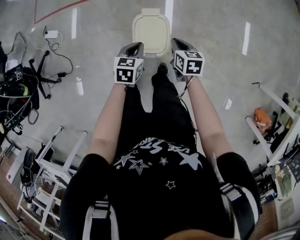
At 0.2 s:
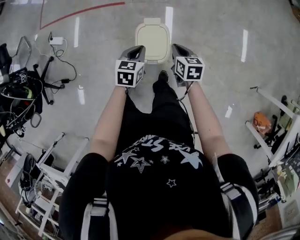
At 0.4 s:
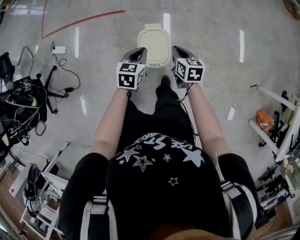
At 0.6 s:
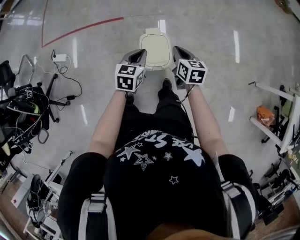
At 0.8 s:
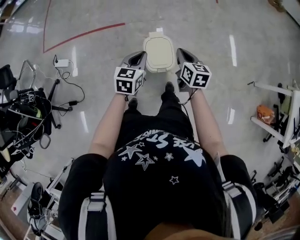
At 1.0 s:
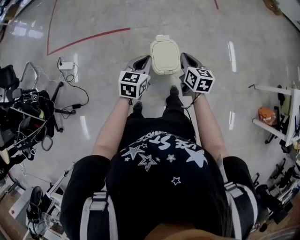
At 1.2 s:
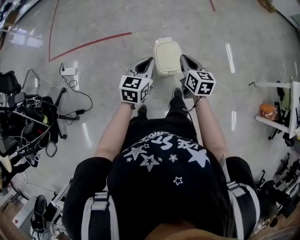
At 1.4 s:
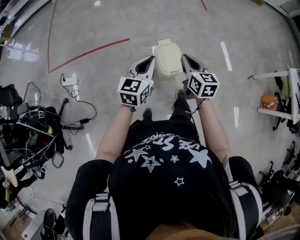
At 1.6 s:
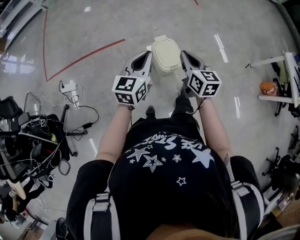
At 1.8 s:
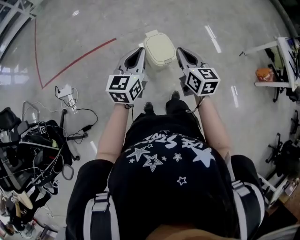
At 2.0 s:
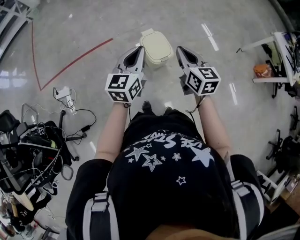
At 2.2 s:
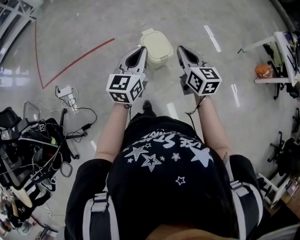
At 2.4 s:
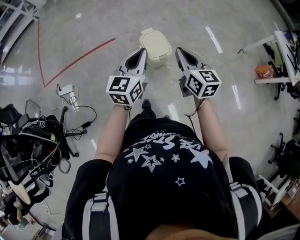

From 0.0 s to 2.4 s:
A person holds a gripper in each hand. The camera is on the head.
From 0.0 s to 1.2 s: The left gripper moves upward and to the left, about 25 cm, and rotates about 30 degrees. Meanwhile the right gripper goes roughly 30 cm upward, to the left and backward, and turns by approximately 30 degrees.
From 1.2 s to 2.4 s: The grippers both shift backward and upward by about 20 cm.

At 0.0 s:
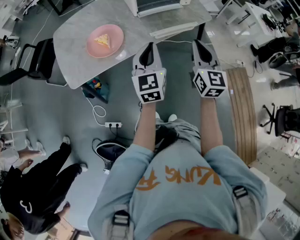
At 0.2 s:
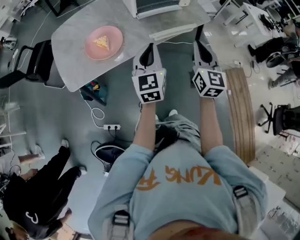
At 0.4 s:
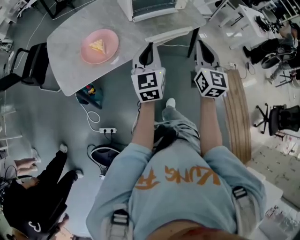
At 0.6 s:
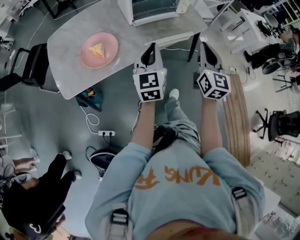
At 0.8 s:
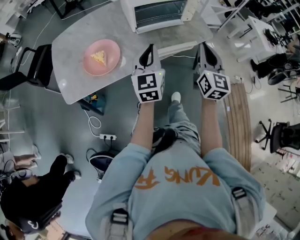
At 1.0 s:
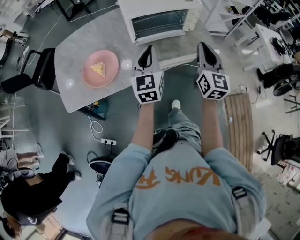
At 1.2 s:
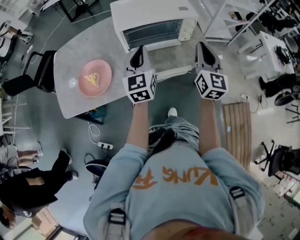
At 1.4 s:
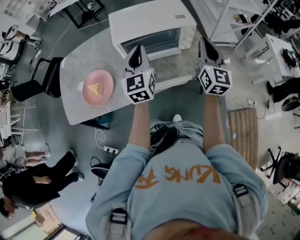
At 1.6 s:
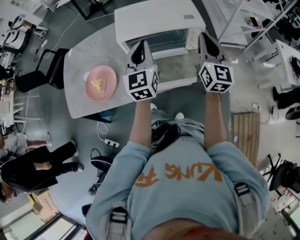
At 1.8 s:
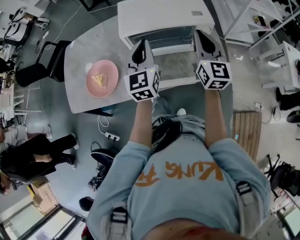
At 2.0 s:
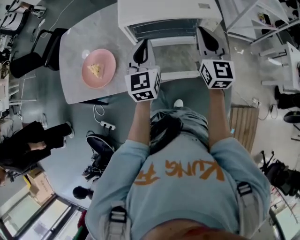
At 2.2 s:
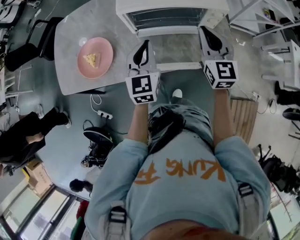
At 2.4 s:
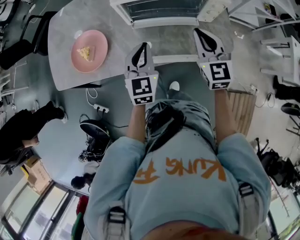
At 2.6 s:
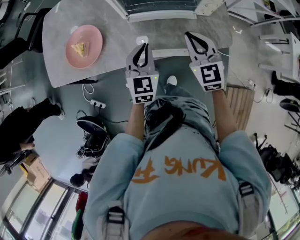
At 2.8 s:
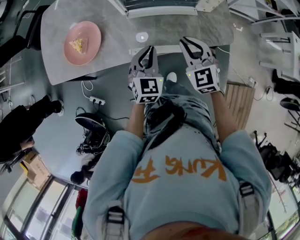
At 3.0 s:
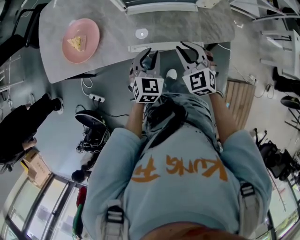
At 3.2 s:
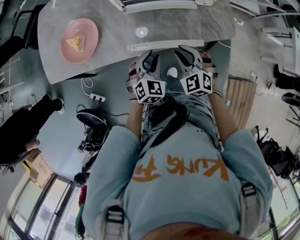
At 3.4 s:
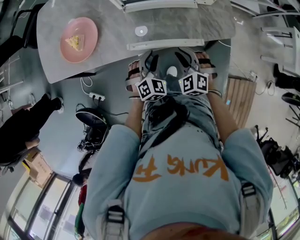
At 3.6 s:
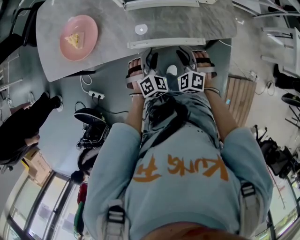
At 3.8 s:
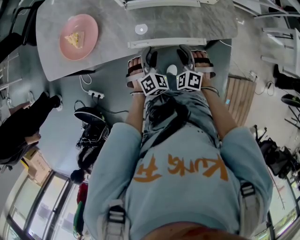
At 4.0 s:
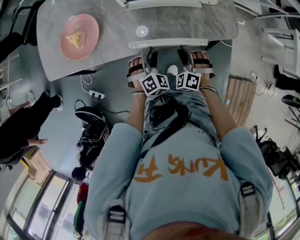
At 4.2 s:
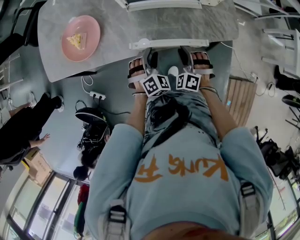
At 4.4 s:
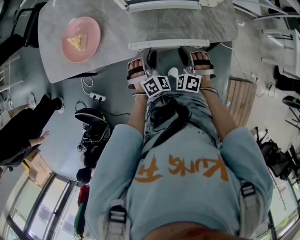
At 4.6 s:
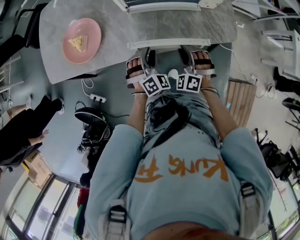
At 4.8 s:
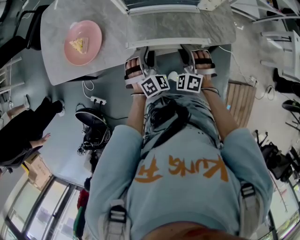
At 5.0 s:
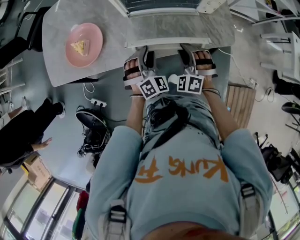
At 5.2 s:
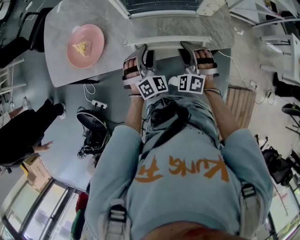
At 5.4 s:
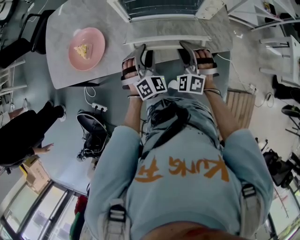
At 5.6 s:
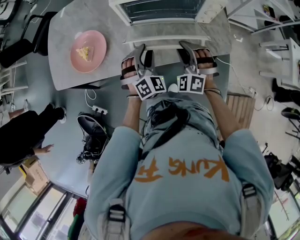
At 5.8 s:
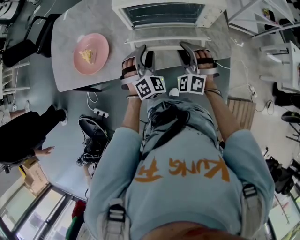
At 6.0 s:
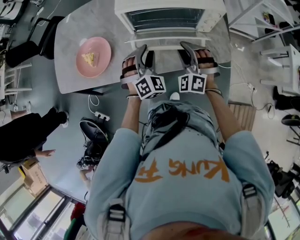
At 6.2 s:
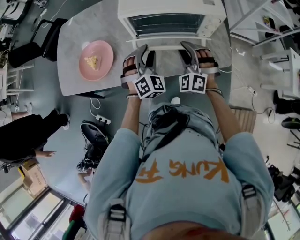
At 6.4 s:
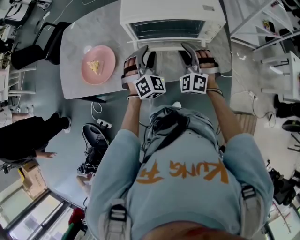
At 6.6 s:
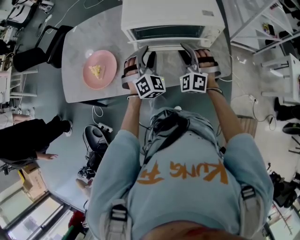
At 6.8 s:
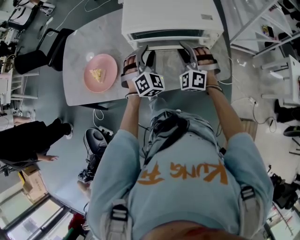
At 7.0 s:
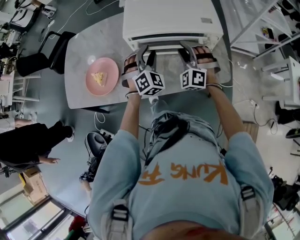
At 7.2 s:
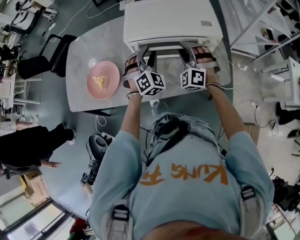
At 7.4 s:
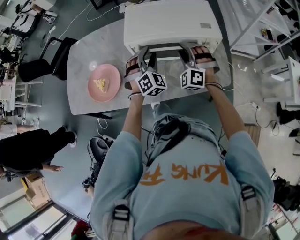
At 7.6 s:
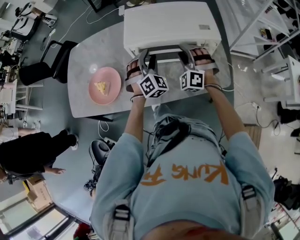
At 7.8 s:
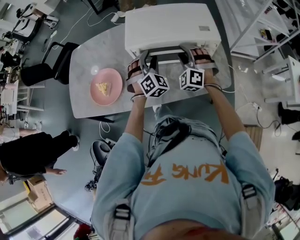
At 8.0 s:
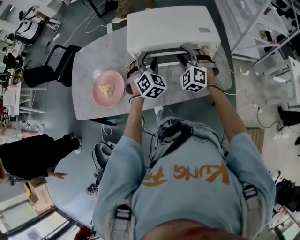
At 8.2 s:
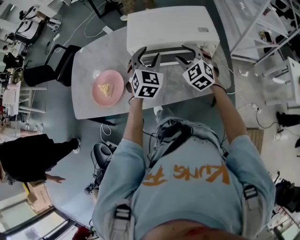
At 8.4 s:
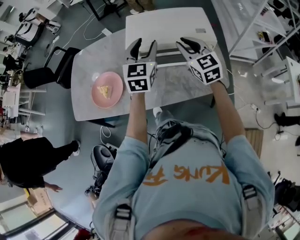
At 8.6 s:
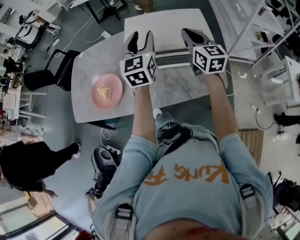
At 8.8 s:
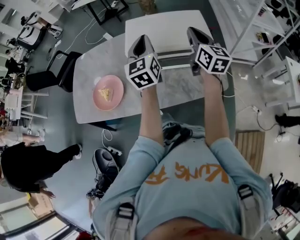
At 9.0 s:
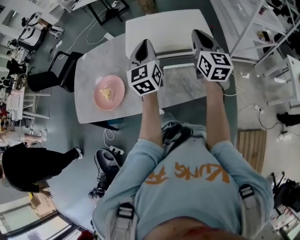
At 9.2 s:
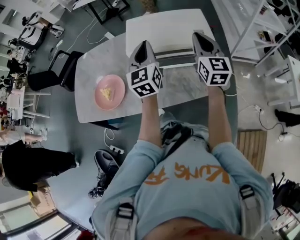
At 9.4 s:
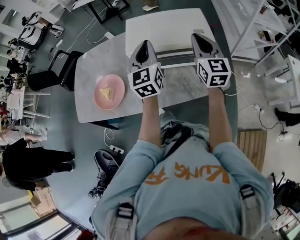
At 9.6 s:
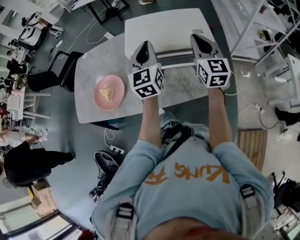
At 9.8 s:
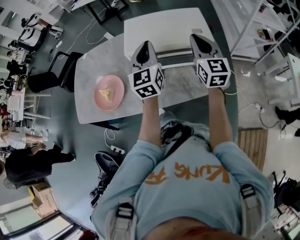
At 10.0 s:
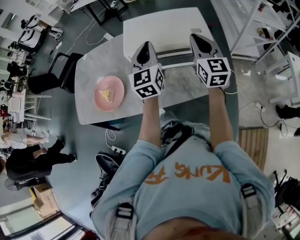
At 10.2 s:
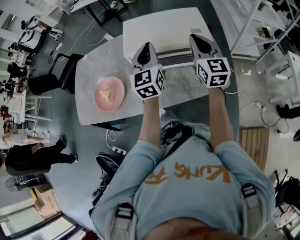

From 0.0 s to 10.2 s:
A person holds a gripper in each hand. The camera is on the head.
From 0.0 s to 1.4 s: The left gripper moves forward, approximately 30 cm. Meanwhile the right gripper goes roughly 35 cm forward and to the right.
From 1.4 s to 3.0 s: The right gripper heads downward and to the left, covering roughly 30 cm, and tilts its fingers some 40 degrees downward. Meanwhile the left gripper shifts roughly 25 cm downward, and angles its fingers downward, by approximately 30 degrees.
From 3.0 s to 4.4 s: Both grippers travel together downward, roughly 10 cm. The left gripper changes its angle by approximately 40 degrees; the right gripper swivels about 40 degrees.
From 4.4 s to 5.8 s: Both grippers move upward and forward, some 15 cm.
From 5.8 s to 7.2 s: The two grippers go some 15 cm forward and upward.
From 7.2 s to 8.8 s: The right gripper moves upward and to the right, about 20 cm, rotates around the line of its fingers by some 90 degrees, clockwise from behind, and closes up. Meanwhile the left gripper is displaced upward by roughly 15 cm, rolls counterclockwise, seen from behind, by some 60 degrees, and closes its fingers.
From 8.8 s to 10.2 s: The grippers make only small movements.

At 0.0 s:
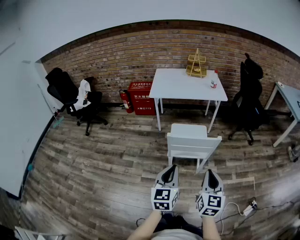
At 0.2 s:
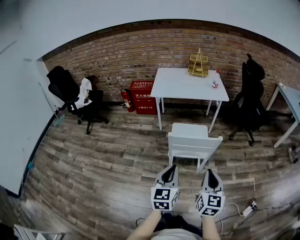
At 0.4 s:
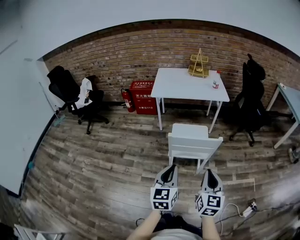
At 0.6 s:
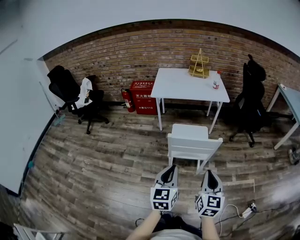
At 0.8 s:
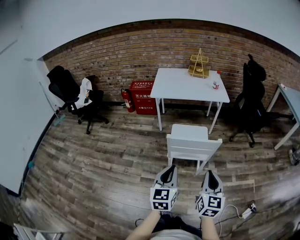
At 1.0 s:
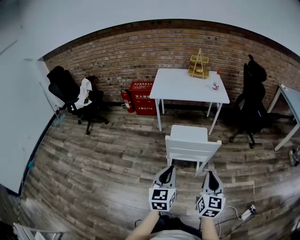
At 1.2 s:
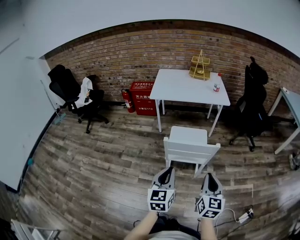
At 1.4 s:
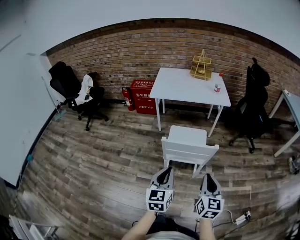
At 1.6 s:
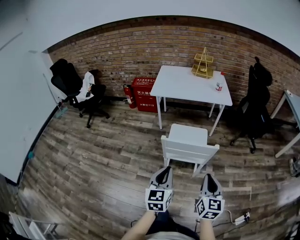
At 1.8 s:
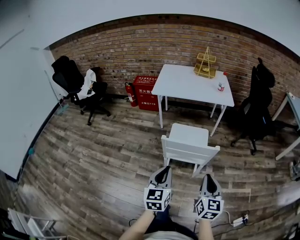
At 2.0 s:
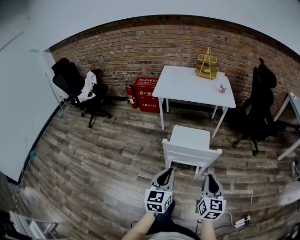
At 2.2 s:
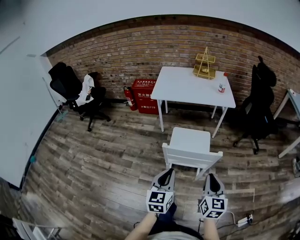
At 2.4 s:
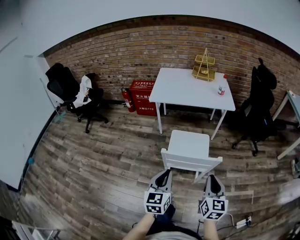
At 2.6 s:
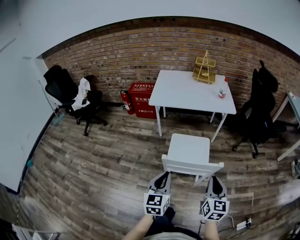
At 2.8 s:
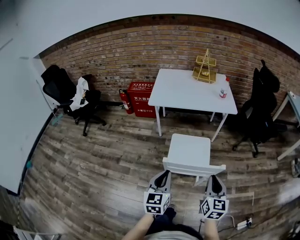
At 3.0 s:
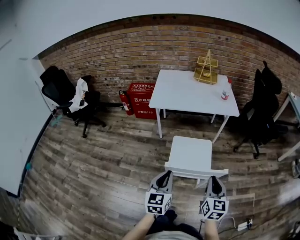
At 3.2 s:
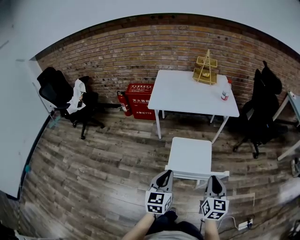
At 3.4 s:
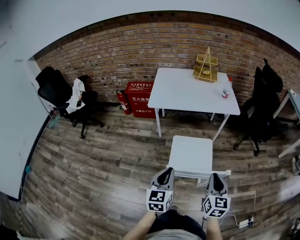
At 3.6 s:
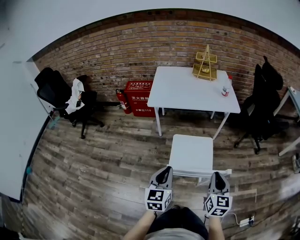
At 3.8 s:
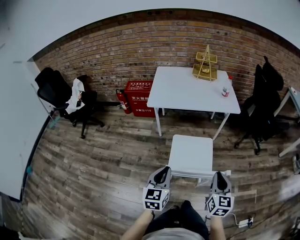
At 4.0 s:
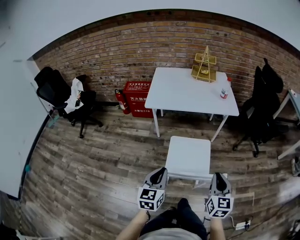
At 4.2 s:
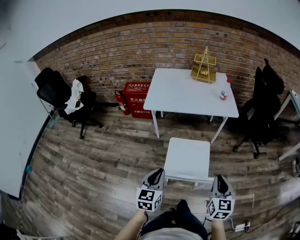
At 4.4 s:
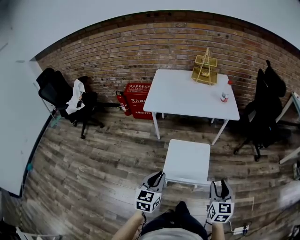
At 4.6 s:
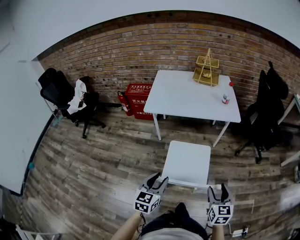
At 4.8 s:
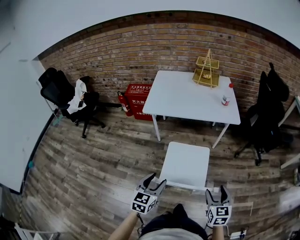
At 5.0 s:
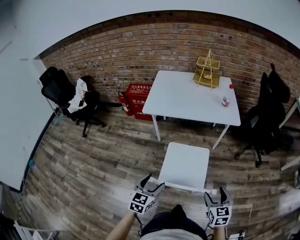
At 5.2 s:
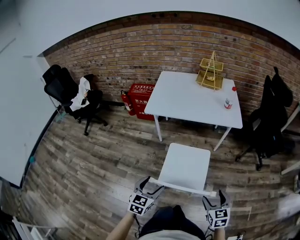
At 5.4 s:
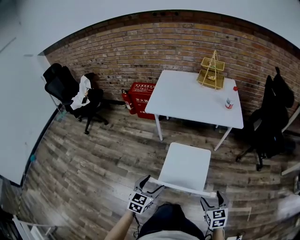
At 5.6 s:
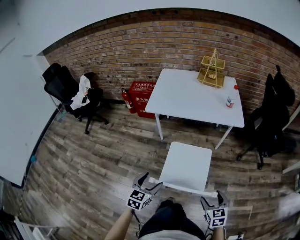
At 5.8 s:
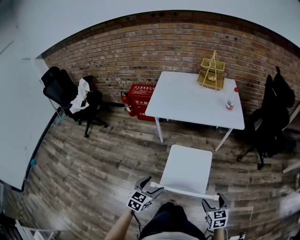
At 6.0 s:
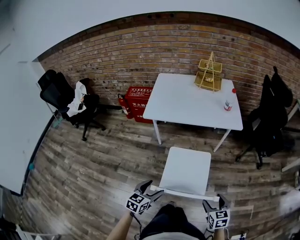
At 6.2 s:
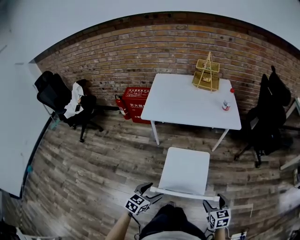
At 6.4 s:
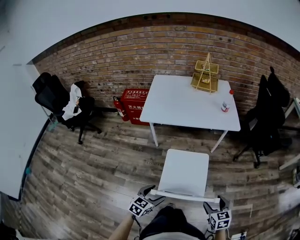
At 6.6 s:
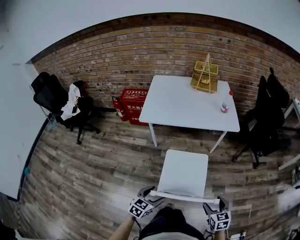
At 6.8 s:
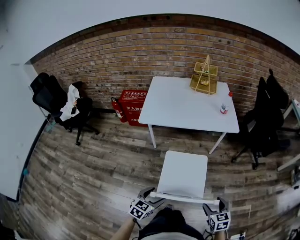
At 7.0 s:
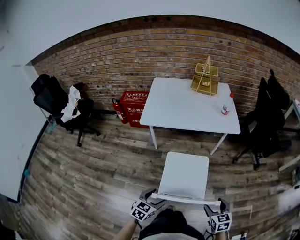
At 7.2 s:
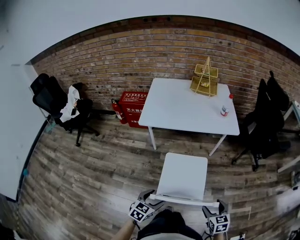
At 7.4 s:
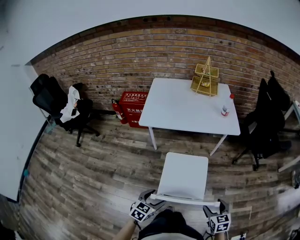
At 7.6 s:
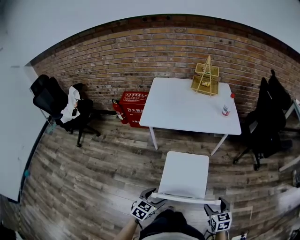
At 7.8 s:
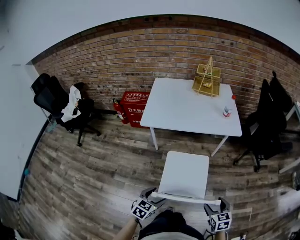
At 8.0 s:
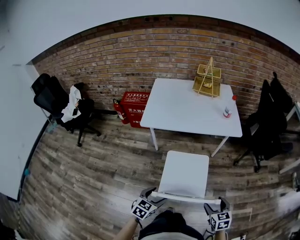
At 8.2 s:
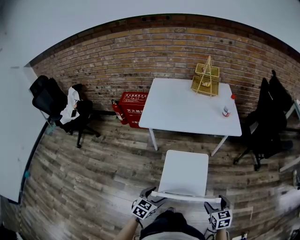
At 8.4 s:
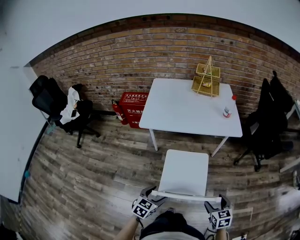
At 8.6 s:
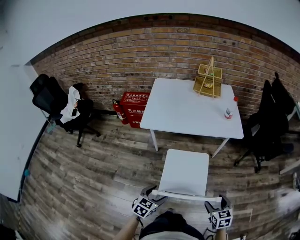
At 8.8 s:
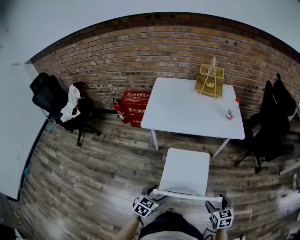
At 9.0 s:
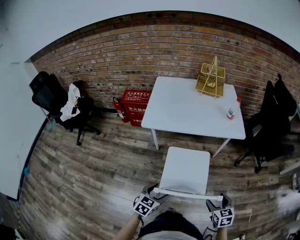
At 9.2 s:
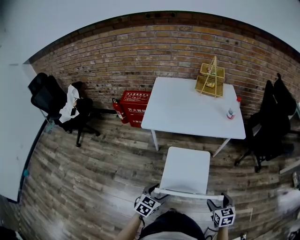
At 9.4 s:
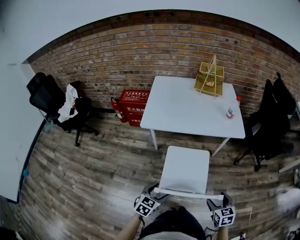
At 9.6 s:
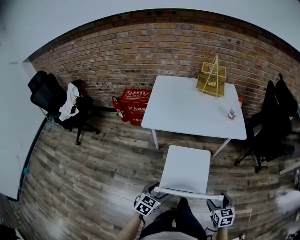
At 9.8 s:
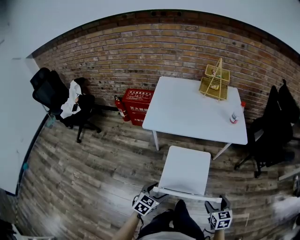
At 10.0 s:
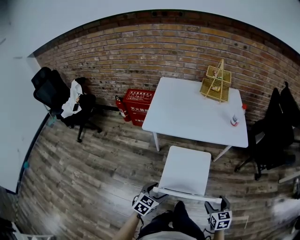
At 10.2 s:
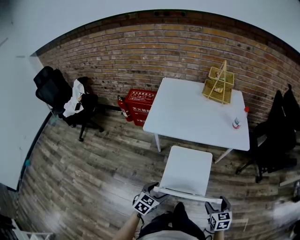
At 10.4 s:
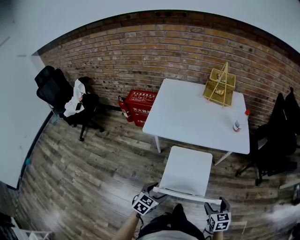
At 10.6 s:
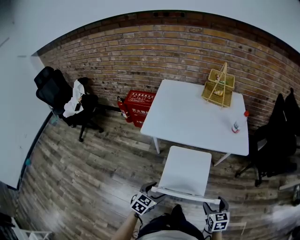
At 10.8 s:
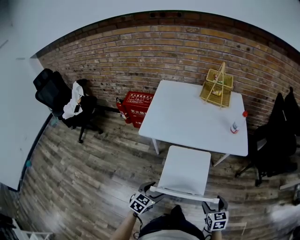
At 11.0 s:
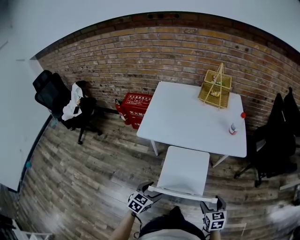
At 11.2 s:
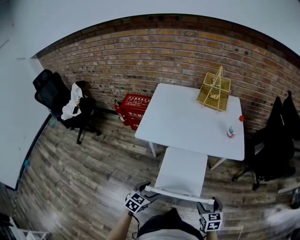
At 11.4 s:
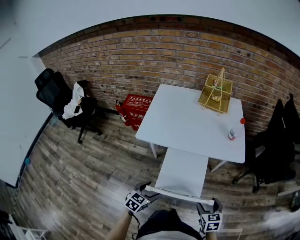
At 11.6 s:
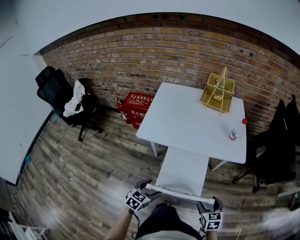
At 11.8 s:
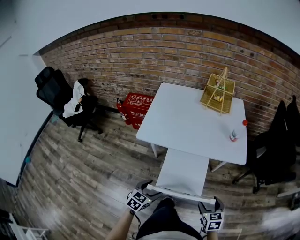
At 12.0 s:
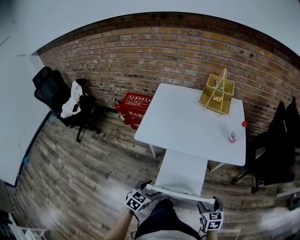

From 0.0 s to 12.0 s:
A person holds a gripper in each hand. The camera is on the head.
From 0.0 s to 1.6 s: The right gripper goes approximately 5 cm forward; the left gripper changes place by some 5 cm.
From 1.6 s to 3.0 s: The two grippers go approximately 15 cm forward.
From 3.0 s to 4.4 s: The right gripper goes approximately 10 cm to the right and forward, and opens up. The left gripper heads forward, covering approximately 5 cm.
From 4.4 s to 6.0 s: Both grippers move downward, roughly 10 cm. The left gripper opens its fingers. The right gripper swivels roughly 20 degrees, and opens.
From 6.0 s to 7.6 s: The grippers move only a little.
From 7.6 s to 9.0 s: Both grippers travel together forward, about 5 cm.
From 9.0 s to 10.4 s: The grippers both shift forward by some 5 cm.
From 10.4 s to 12.0 s: The grippers both shift forward by approximately 10 cm.
